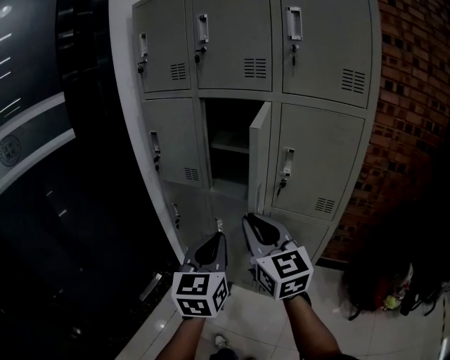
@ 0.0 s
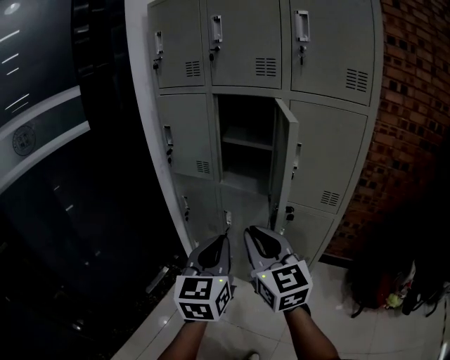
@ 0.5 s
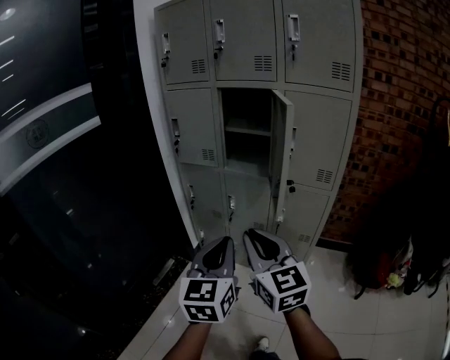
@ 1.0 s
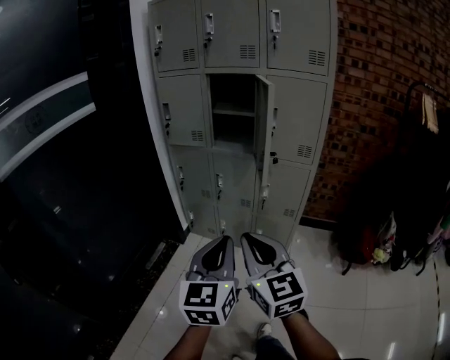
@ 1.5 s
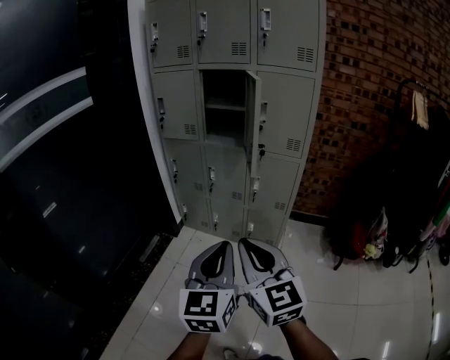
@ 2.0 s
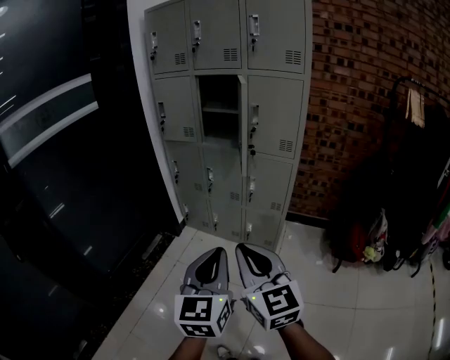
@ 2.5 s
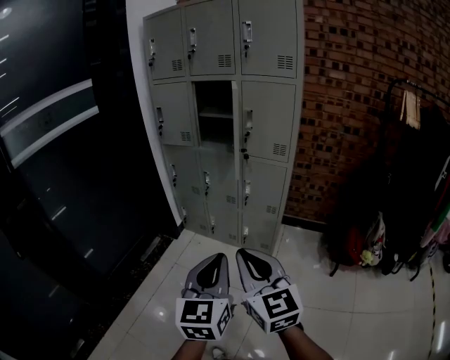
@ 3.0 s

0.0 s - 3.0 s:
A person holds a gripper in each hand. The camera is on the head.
0.0 s - 1.5 s: Both grippers travel together backward, about 30 cm.
1.5 s - 3.0 s: The two grippers go some 20 cm backward and to the right.

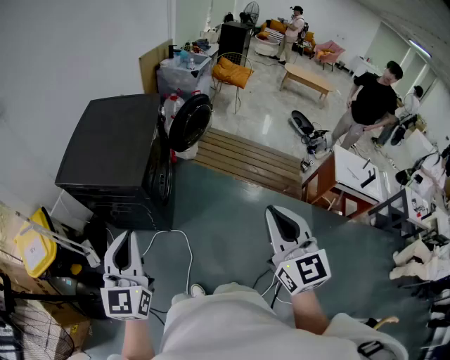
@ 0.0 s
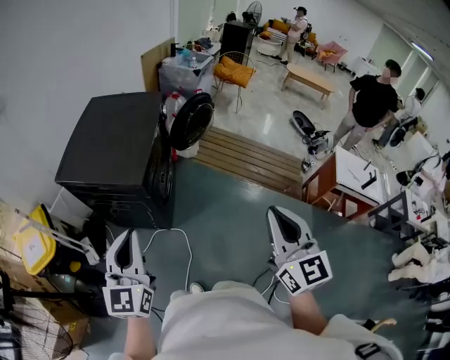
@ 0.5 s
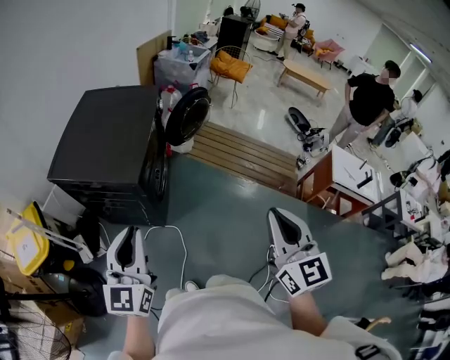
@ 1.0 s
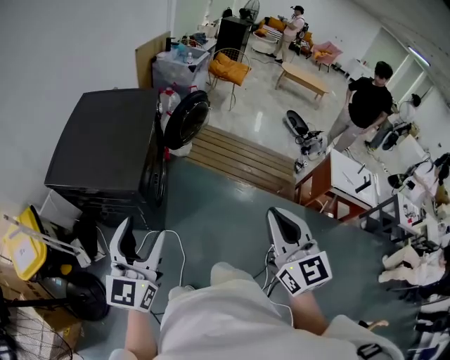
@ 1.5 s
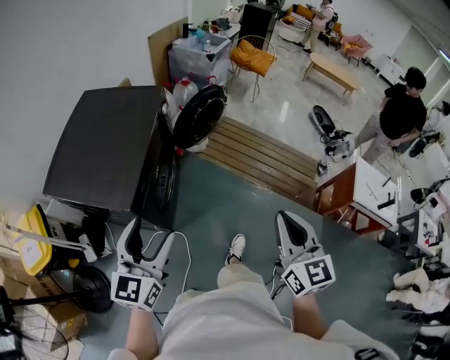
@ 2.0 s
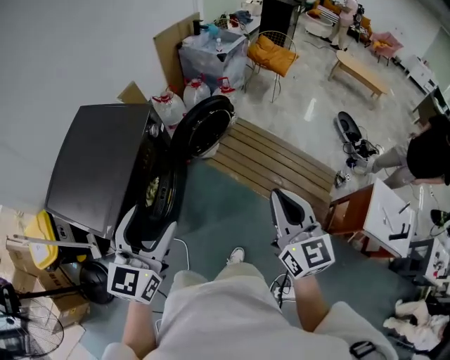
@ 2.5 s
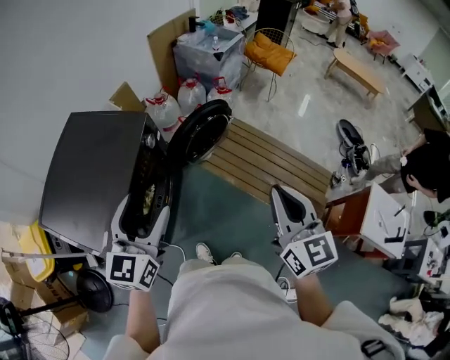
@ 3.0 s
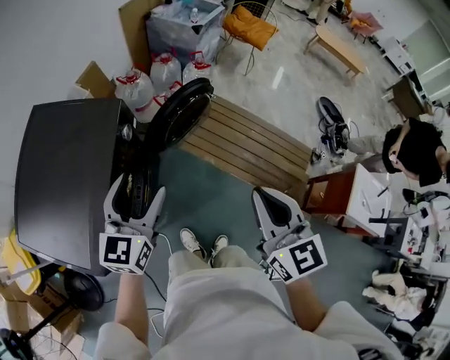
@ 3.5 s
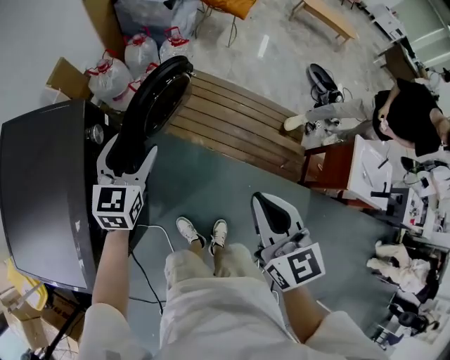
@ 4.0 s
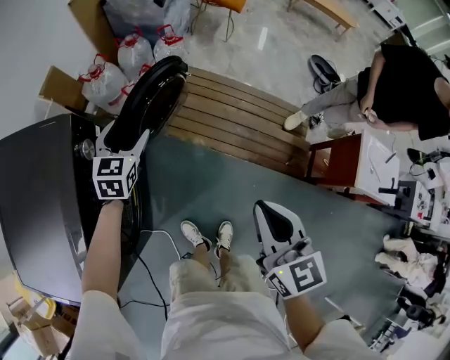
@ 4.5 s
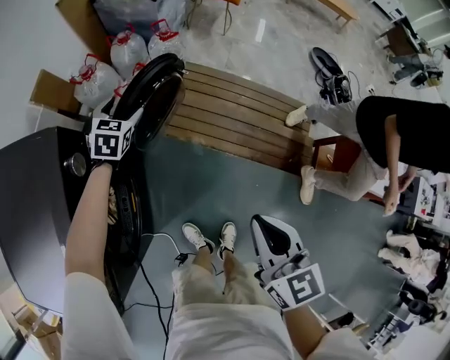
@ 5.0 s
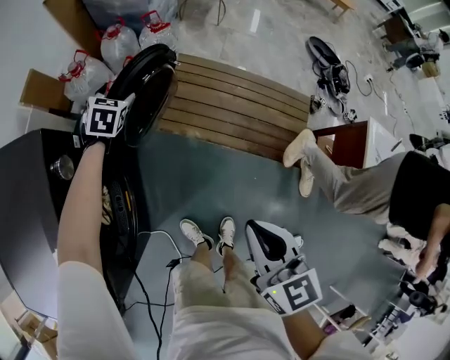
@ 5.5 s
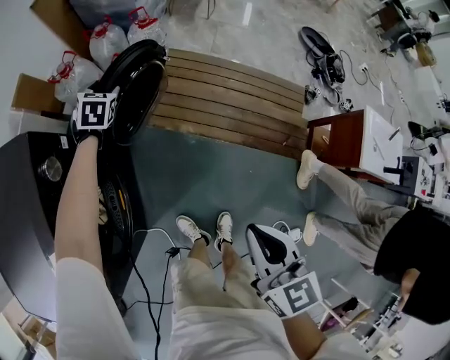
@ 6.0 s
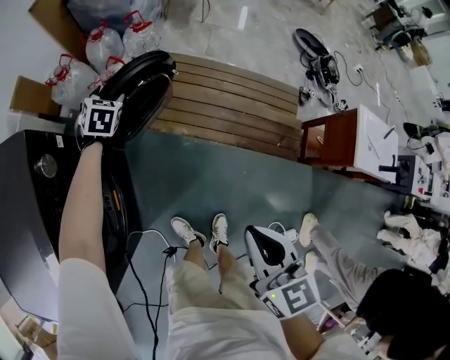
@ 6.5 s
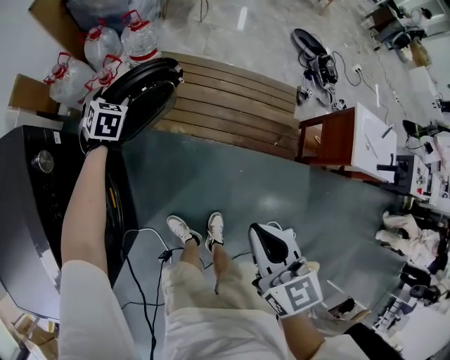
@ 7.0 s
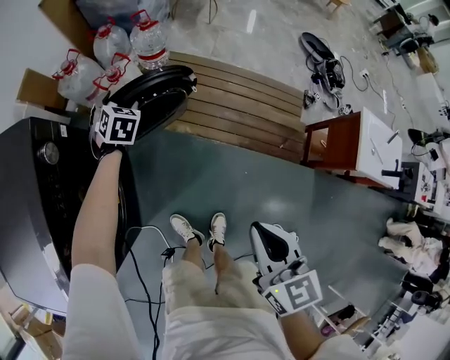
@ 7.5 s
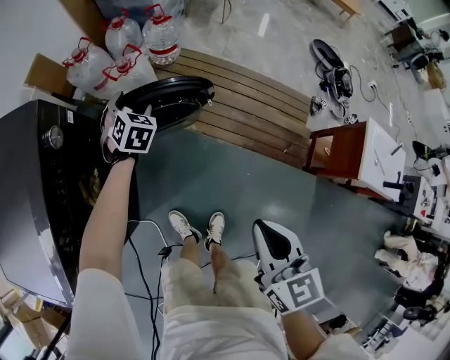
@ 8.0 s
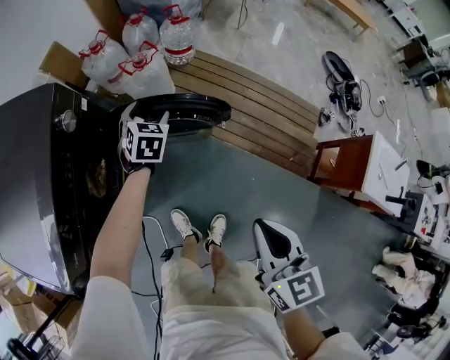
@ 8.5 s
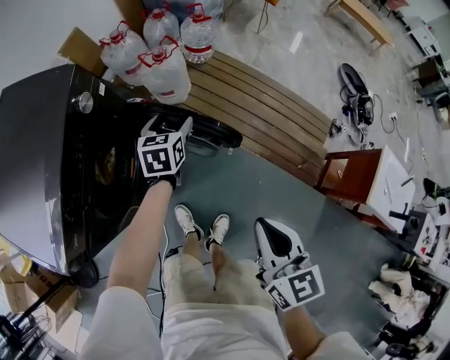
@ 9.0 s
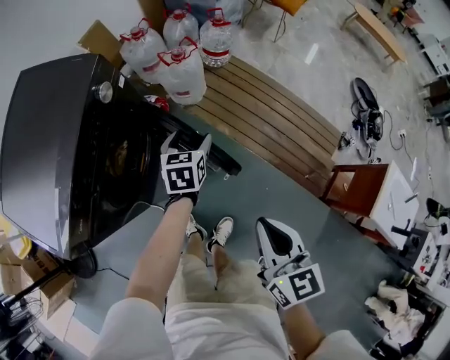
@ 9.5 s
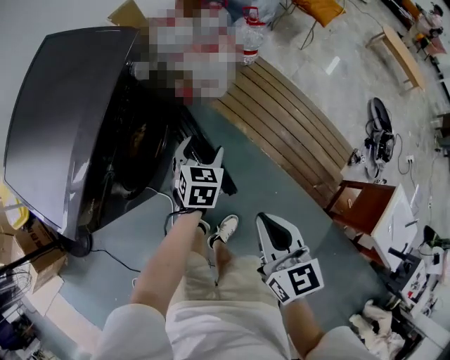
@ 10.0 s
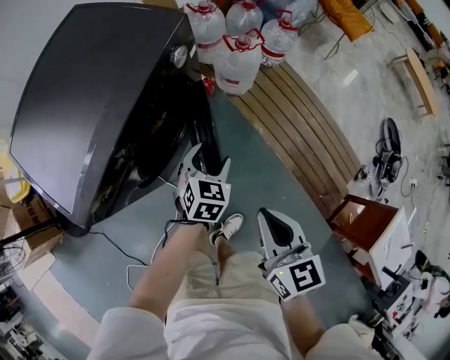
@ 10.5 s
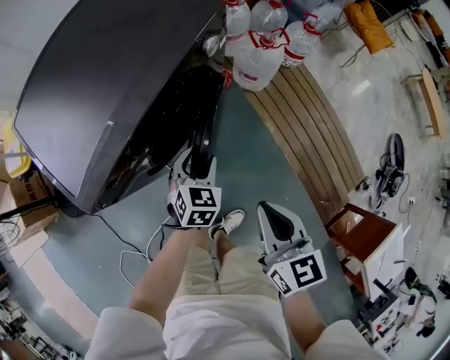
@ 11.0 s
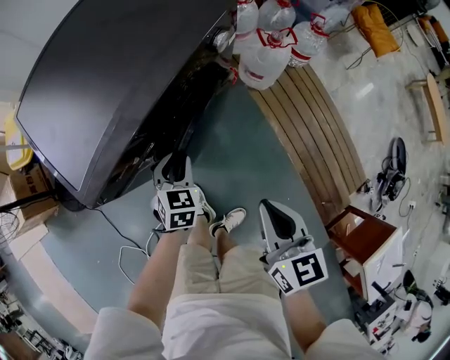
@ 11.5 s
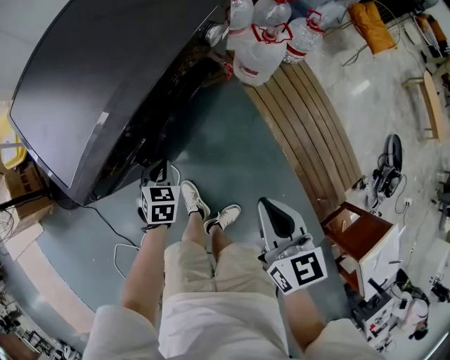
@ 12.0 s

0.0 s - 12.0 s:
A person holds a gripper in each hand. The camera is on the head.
0.0 s - 2.0 s: The right gripper heads forward, covering roughly 20 cm. The left gripper is displaced forward and to the right by roughly 20 cm, and opens.
2.0 s - 4.0 s: Both grippers travel together forward, about 40 cm.
4.0 s - 6.0 s: The left gripper heads forward and downward, covering about 35 cm, and rotates about 30 degrees. The right gripper moves downward, about 15 cm.
6.0 s - 8.0 s: The right gripper moves to the right and backward, some 5 cm; the left gripper moves backward and to the right, roughly 15 cm.
8.0 s - 10.0 s: The left gripper travels backward by some 20 cm, and changes its angle by some 30 degrees, while the right gripper shifts some 10 cm to the left, and changes its angle by some 20 degrees.
10.0 s - 12.0 s: The right gripper moves to the left and forward, approximately 10 cm. The left gripper travels to the left by roughly 30 cm, turns by some 20 degrees, and closes up.

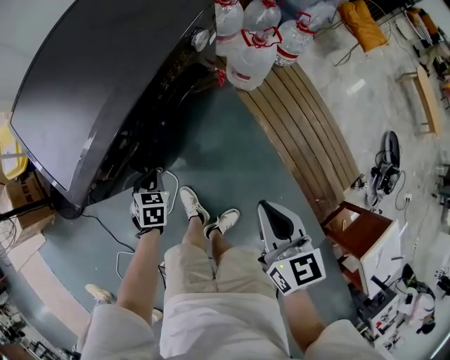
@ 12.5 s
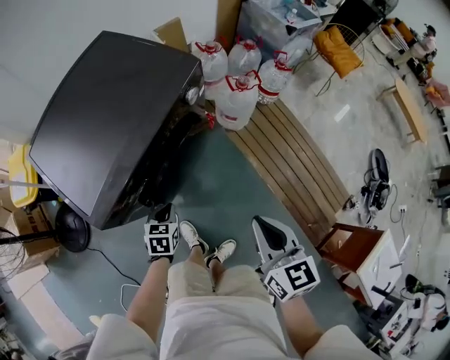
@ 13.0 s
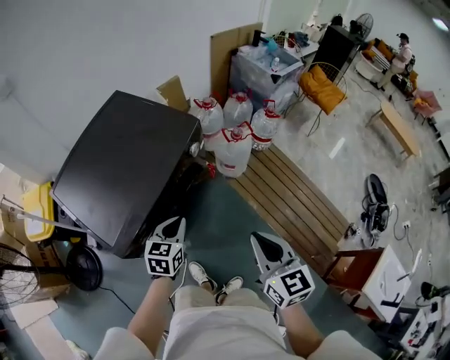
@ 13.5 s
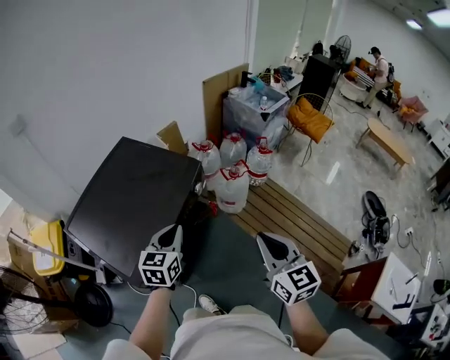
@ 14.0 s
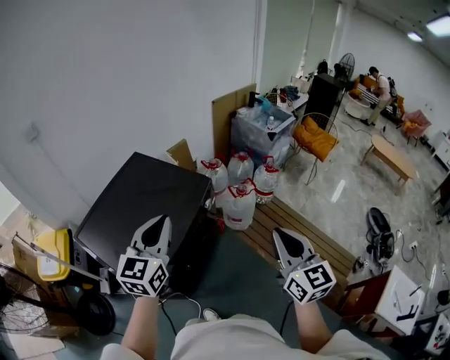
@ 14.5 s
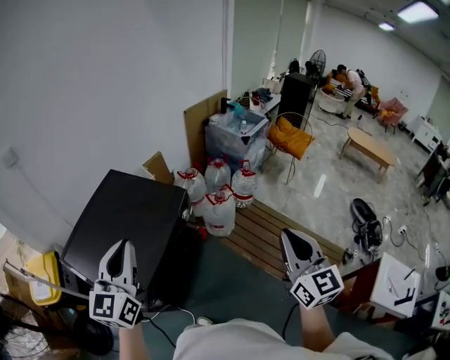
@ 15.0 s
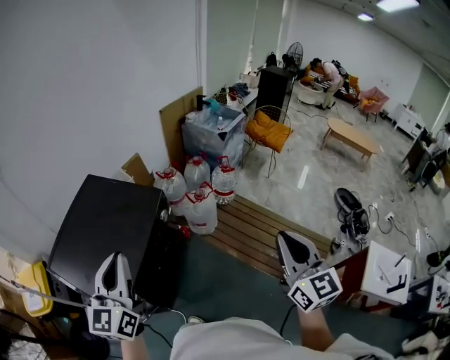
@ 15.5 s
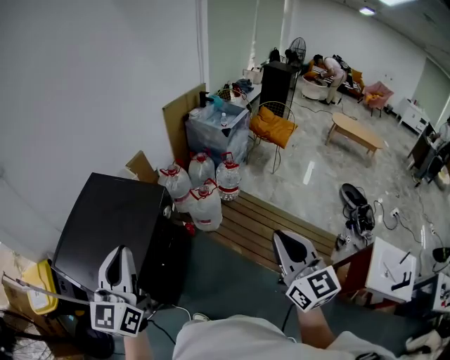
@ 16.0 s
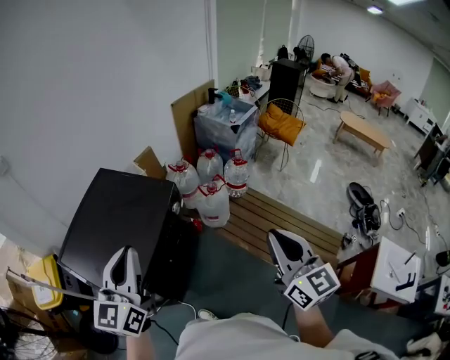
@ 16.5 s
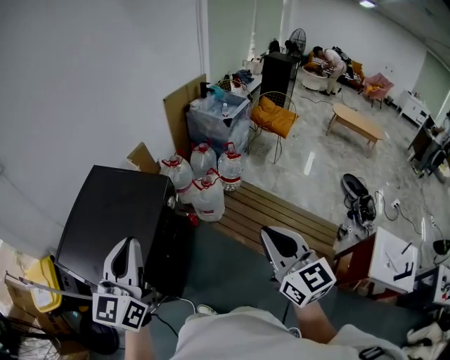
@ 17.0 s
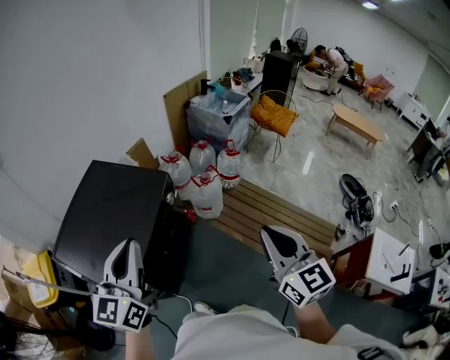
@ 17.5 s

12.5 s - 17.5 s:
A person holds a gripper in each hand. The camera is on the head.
12.5 s - 15.0 s: The right gripper heads upward, covering approximately 35 cm, and changes its angle by about 40 degrees. Meanwhile the left gripper heads upward, covering approximately 60 cm, and tips its fingers upward by about 60 degrees.
15.0 s - 17.5 s: The left gripper heads to the right, covering approximately 5 cm.

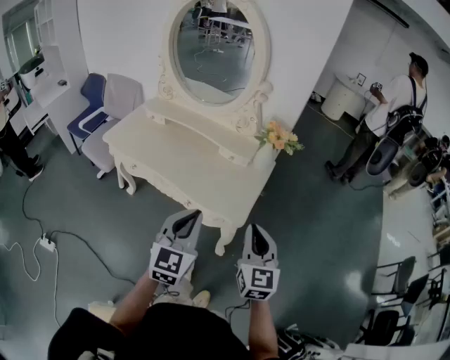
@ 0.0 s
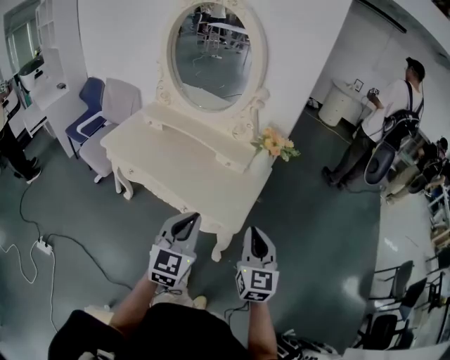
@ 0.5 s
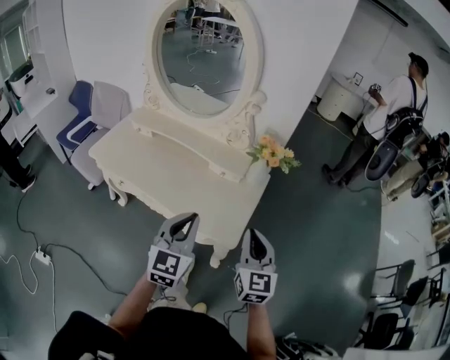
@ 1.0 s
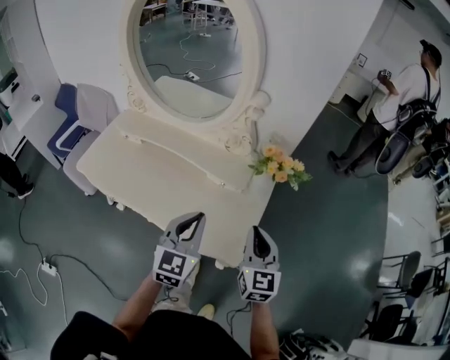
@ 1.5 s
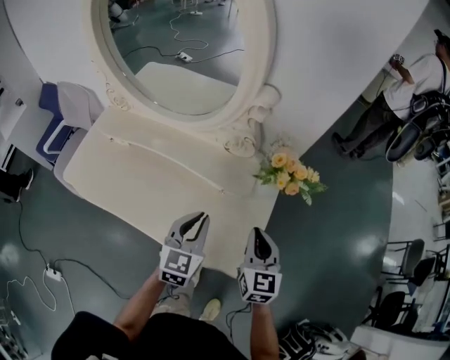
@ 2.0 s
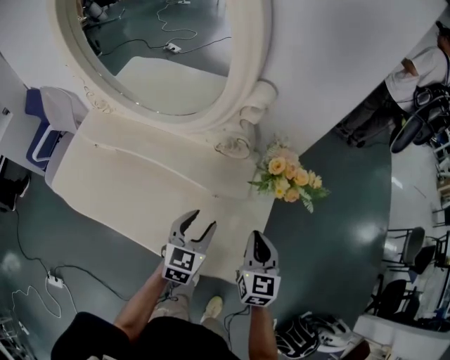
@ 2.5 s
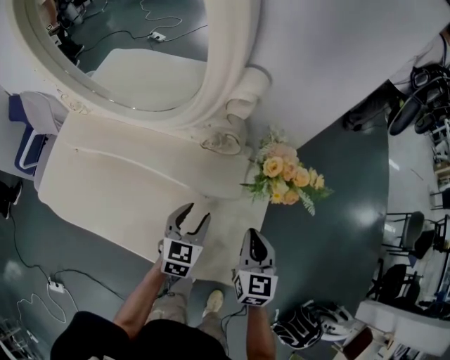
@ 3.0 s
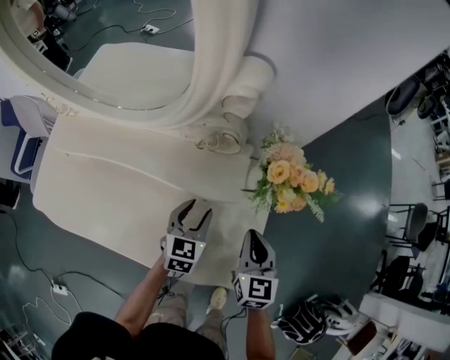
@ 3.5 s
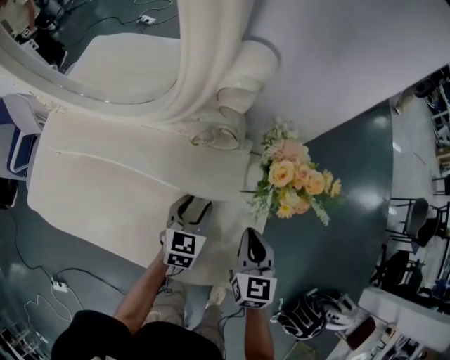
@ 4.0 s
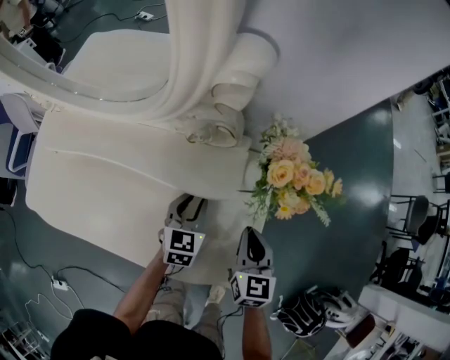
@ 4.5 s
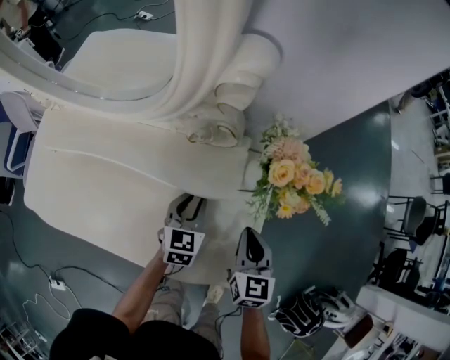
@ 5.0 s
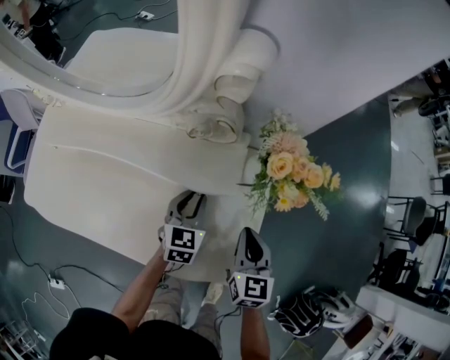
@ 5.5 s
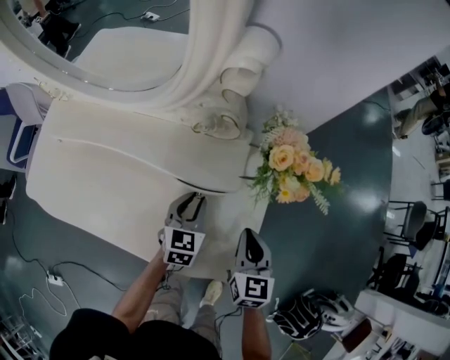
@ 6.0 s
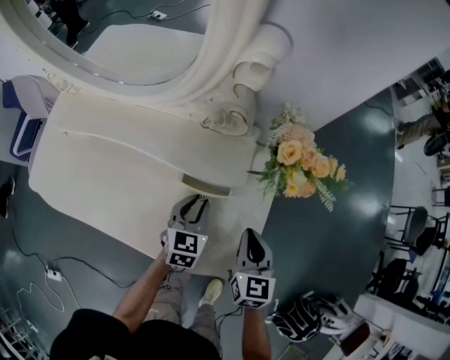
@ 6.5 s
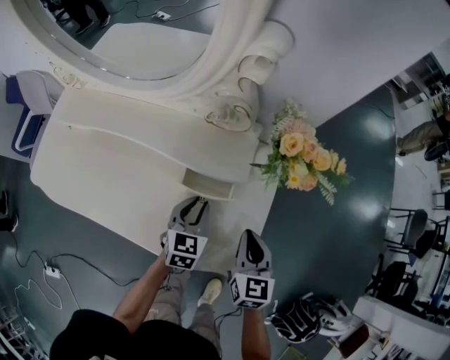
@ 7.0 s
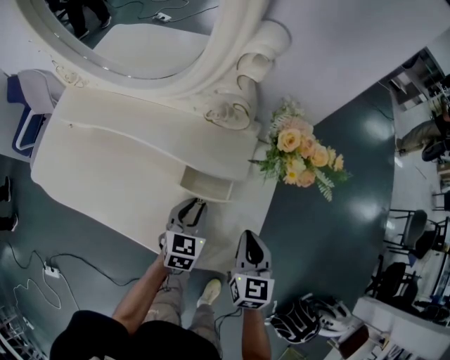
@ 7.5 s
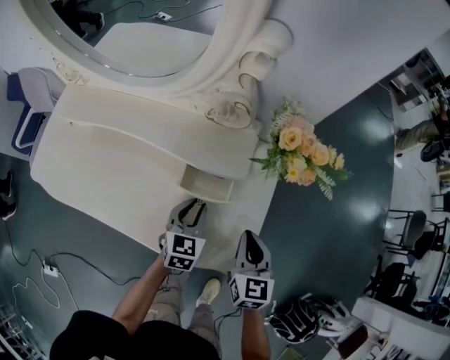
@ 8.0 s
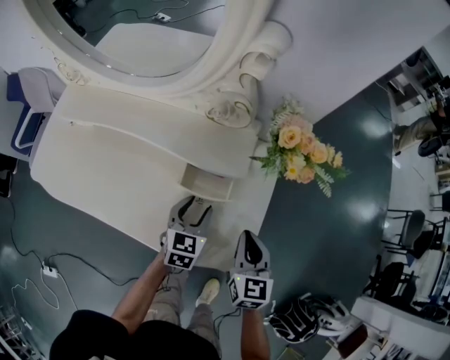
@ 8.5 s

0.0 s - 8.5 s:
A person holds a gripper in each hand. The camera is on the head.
0.0 s - 2.0 s: The left gripper heads forward and downward, covering about 35 cm. Meanwhile the right gripper goes about 30 cm forward.
2.0 s - 4.0 s: The left gripper travels downward and forward by some 25 cm, and opens its fingers, while the right gripper is displaced downward and forward by about 15 cm.
4.0 s - 6.5 s: The left gripper closes.
6.5 s - 8.5 s: The left gripper opens its fingers.
